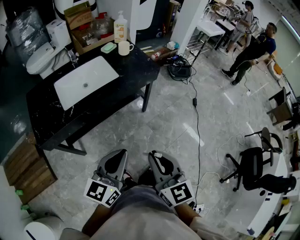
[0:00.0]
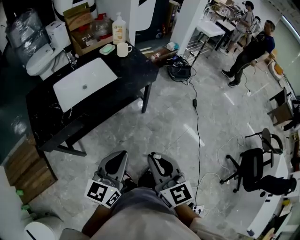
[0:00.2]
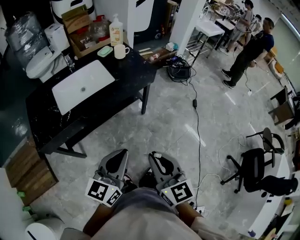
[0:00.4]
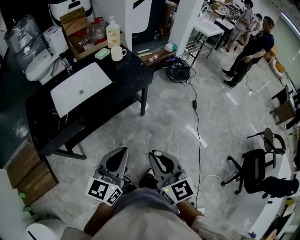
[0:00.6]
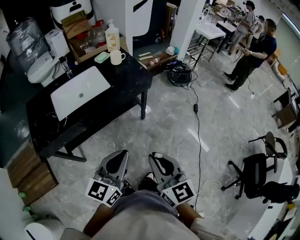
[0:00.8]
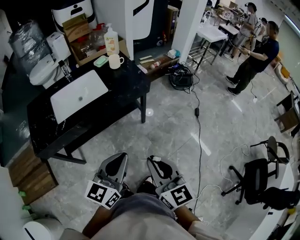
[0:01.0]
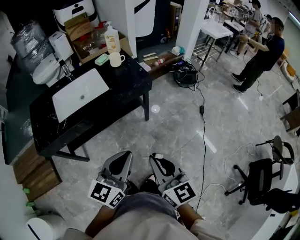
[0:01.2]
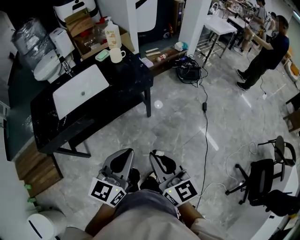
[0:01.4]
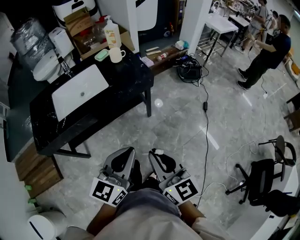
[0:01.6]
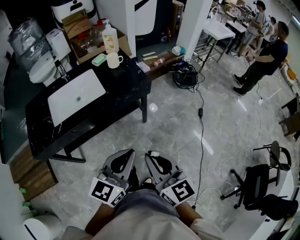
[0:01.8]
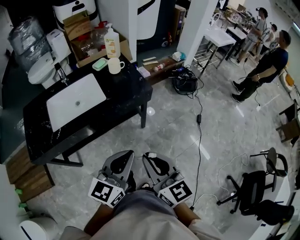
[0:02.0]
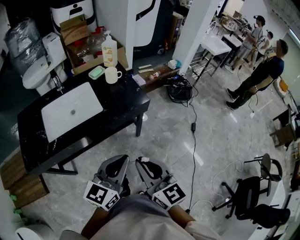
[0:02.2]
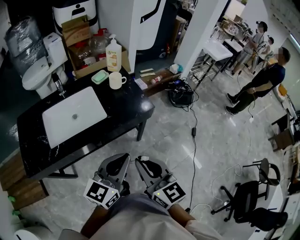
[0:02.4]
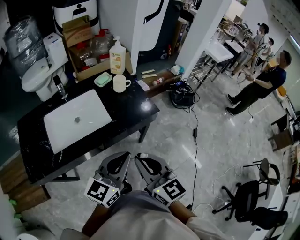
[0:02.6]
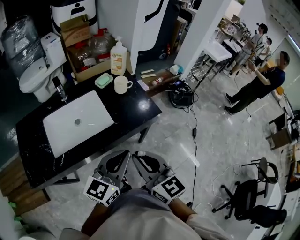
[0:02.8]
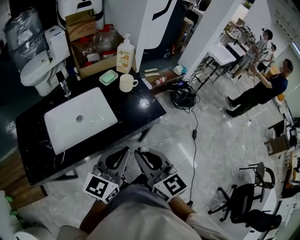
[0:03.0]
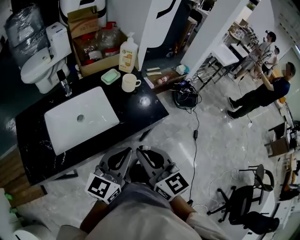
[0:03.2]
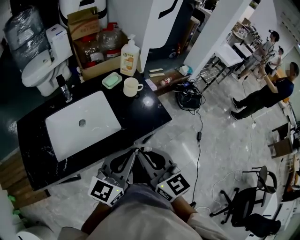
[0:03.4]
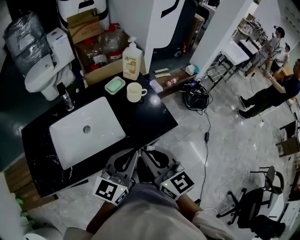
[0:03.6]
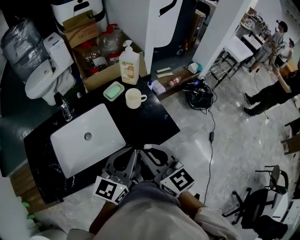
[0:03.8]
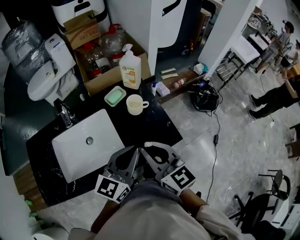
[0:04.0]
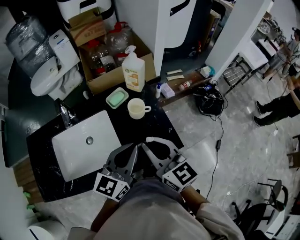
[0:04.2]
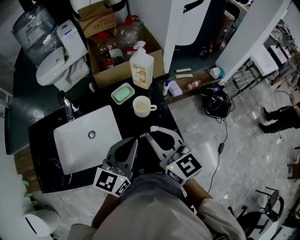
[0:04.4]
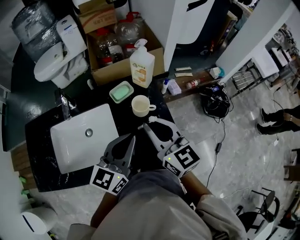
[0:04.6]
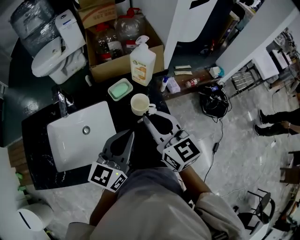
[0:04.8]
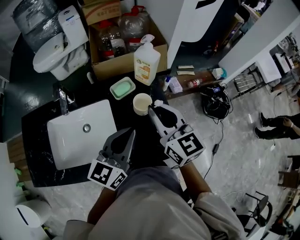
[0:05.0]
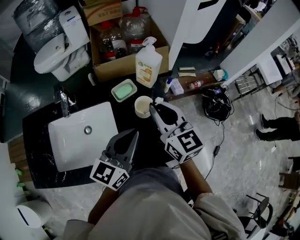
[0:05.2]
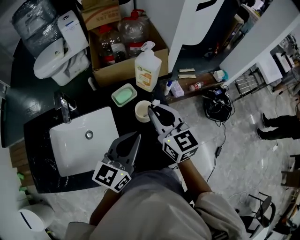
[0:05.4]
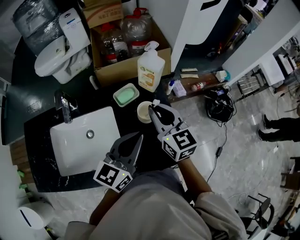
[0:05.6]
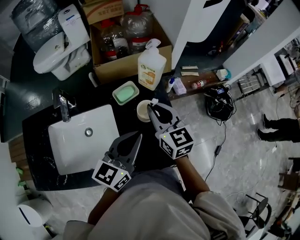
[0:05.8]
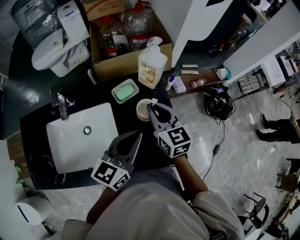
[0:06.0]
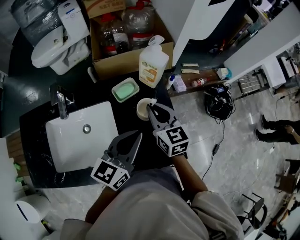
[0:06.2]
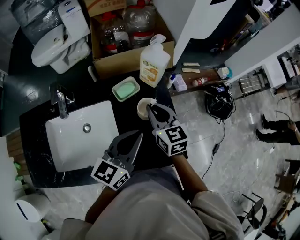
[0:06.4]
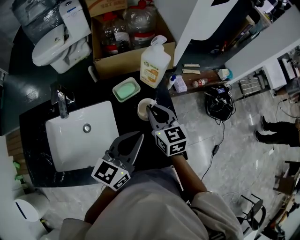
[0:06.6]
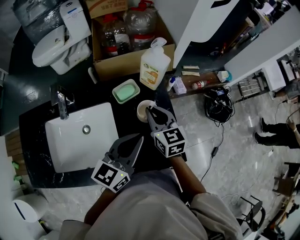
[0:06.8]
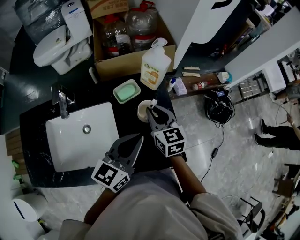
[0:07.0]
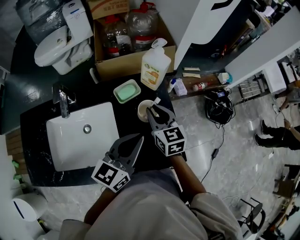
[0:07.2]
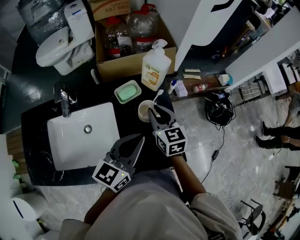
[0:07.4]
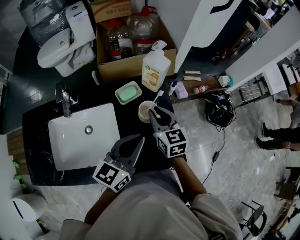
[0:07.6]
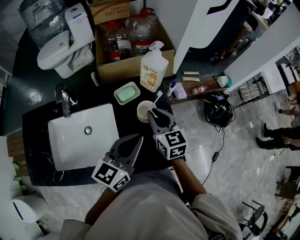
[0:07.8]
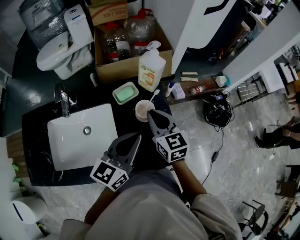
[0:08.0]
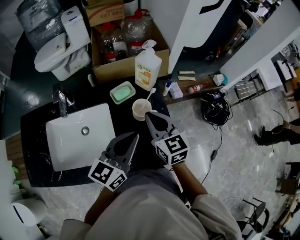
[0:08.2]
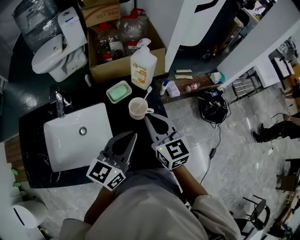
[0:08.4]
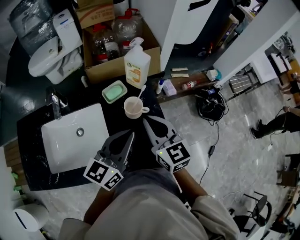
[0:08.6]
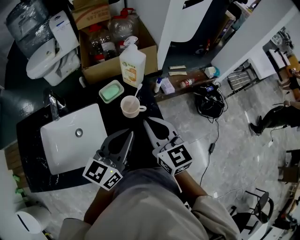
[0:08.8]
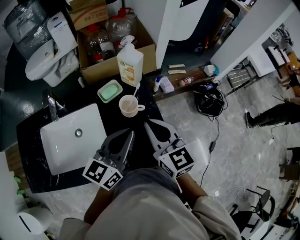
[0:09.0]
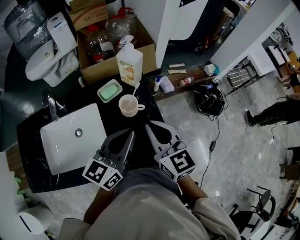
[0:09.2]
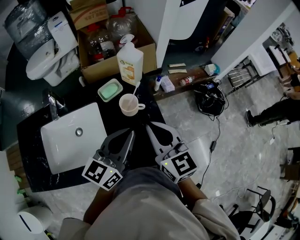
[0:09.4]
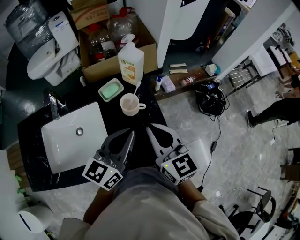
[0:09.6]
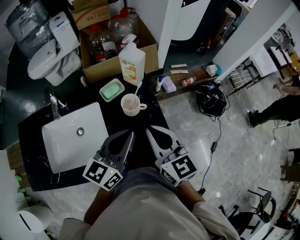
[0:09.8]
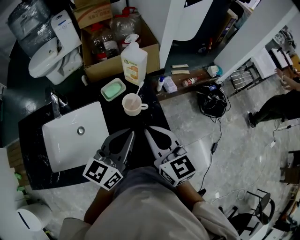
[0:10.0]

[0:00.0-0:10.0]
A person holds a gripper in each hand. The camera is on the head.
0:00.0 to 0:01.4: The two grippers go roughly 15 cm to the right and forward.
0:01.4 to 0:02.8: Both grippers travel together forward and to the left, some 25 cm.
0:02.8 to 0:04.2: The two grippers go about 25 cm forward.
0:04.2 to 0:05.8: The left gripper goes roughly 10 cm forward. Meanwhile the right gripper is displaced forward by roughly 20 cm.
0:05.8 to 0:07.2: The right gripper goes about 5 cm downward.
0:07.2 to 0:08.6: The right gripper goes approximately 10 cm backward and upward.
0:08.6 to 0:10.0: The right gripper shifts by approximately 5 cm.

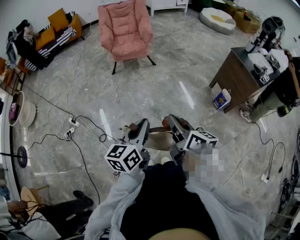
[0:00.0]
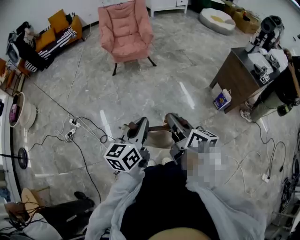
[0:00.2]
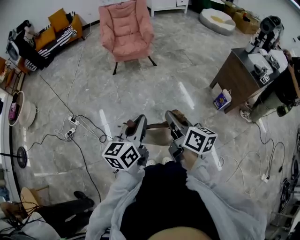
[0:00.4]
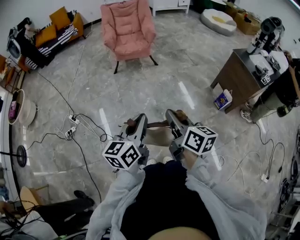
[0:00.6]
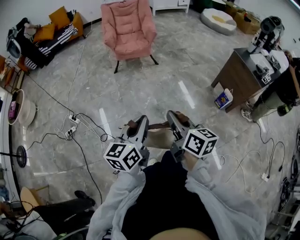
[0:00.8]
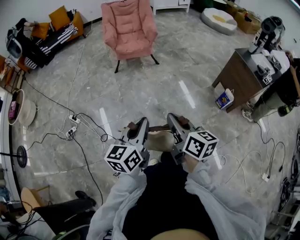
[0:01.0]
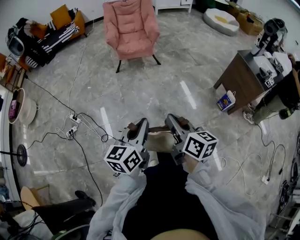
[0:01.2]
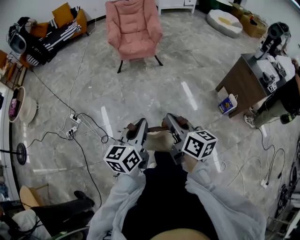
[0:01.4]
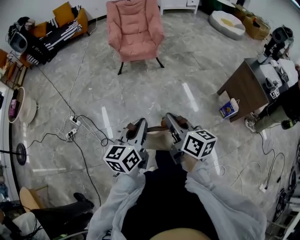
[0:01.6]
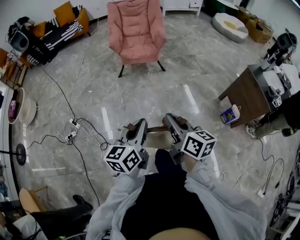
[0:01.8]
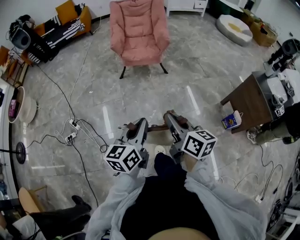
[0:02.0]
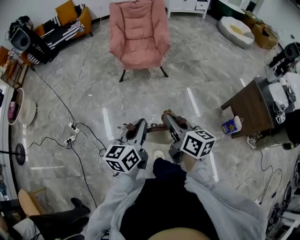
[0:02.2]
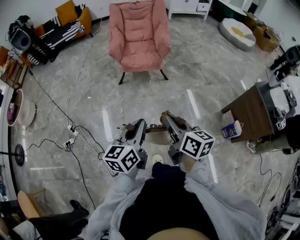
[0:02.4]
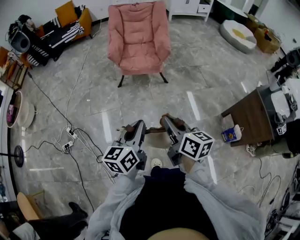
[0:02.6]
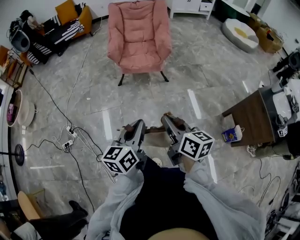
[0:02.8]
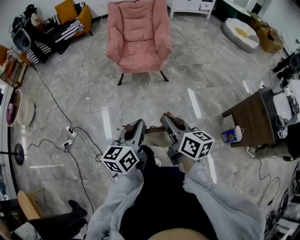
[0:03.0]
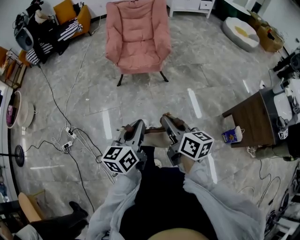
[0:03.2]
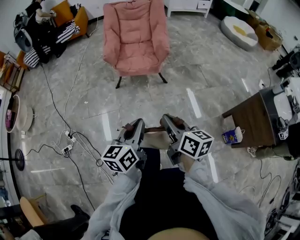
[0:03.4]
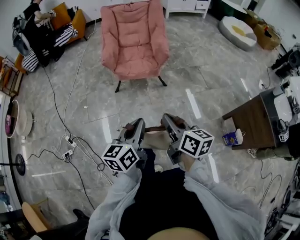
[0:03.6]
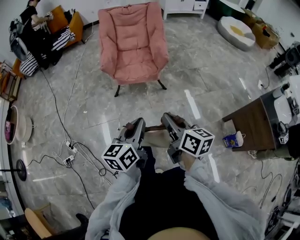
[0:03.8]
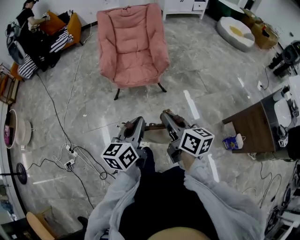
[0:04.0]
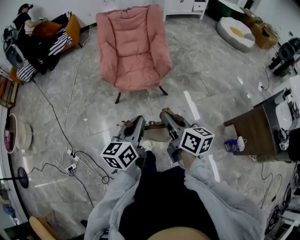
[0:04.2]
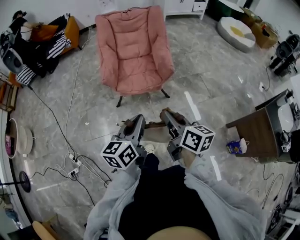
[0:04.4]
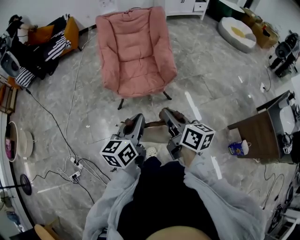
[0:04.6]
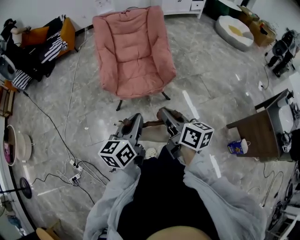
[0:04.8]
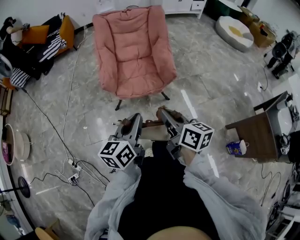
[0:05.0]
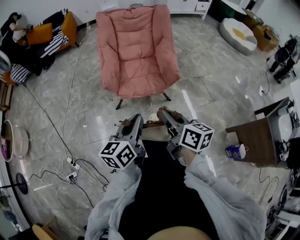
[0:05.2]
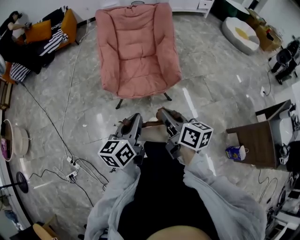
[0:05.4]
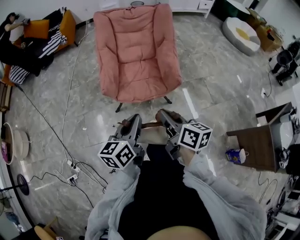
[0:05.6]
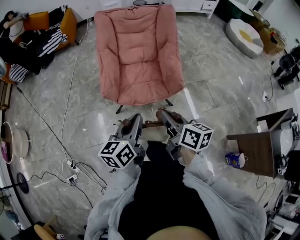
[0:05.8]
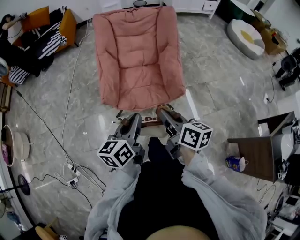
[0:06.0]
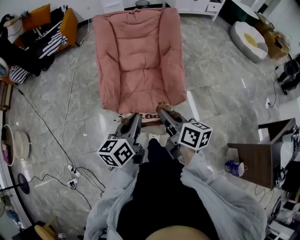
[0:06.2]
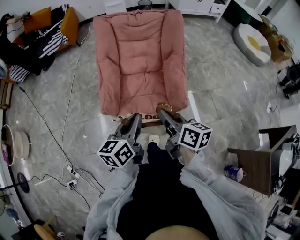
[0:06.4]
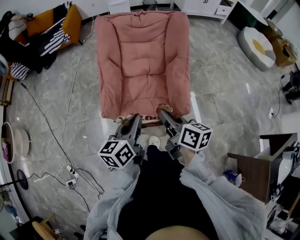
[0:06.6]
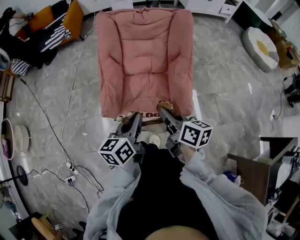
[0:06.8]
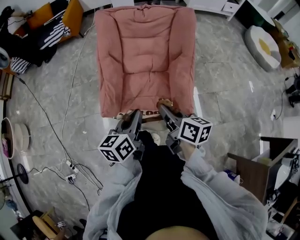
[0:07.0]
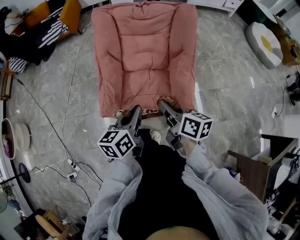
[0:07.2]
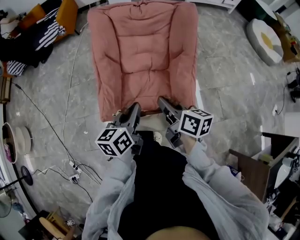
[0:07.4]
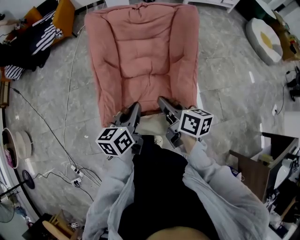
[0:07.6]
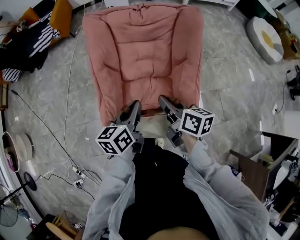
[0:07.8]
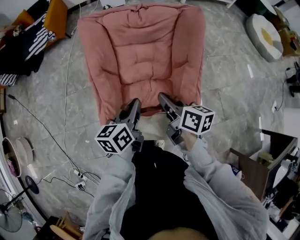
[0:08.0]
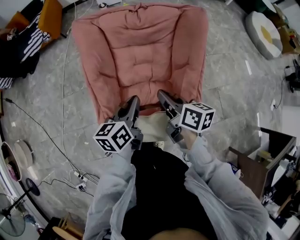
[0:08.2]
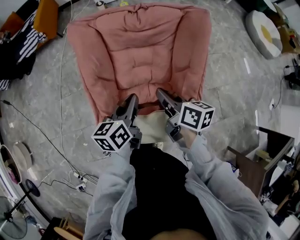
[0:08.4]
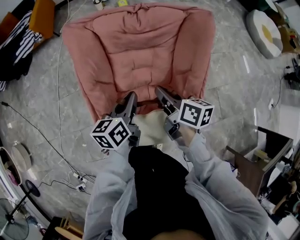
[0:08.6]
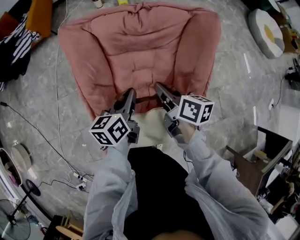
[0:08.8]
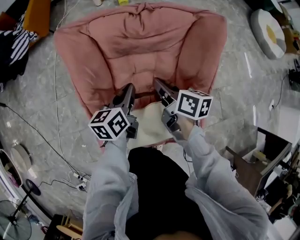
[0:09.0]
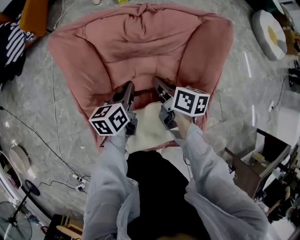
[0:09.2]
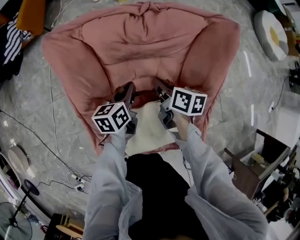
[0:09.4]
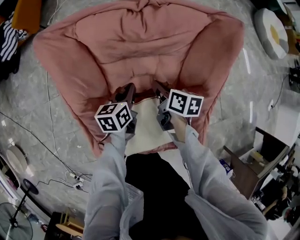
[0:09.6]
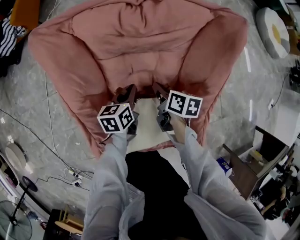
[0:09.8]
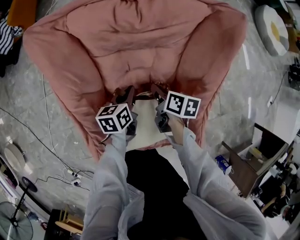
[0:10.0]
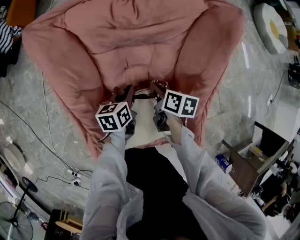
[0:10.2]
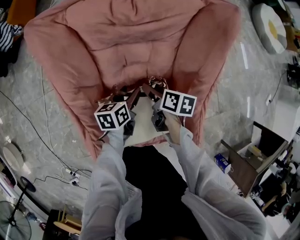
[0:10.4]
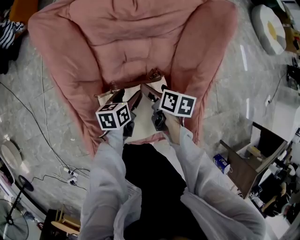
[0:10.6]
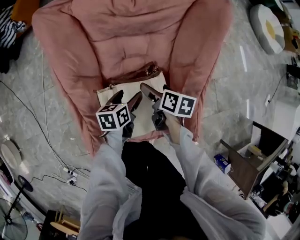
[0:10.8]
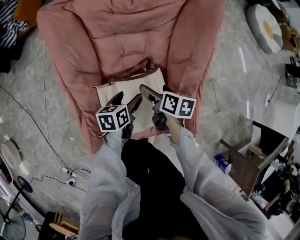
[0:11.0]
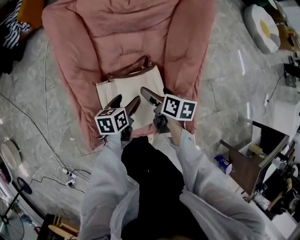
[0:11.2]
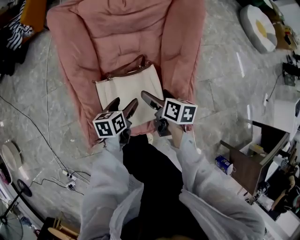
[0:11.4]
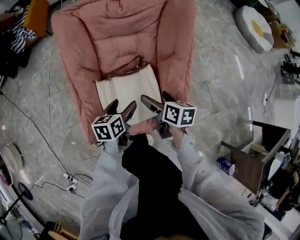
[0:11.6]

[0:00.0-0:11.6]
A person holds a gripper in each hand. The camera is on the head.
0:00.0 to 0:01.4: Both grippers move to the left, roughly 5 cm.
0:01.4 to 0:02.8: The two grippers go some 30 cm forward.
0:02.8 to 0:04.4: Both grippers travel together forward, some 25 cm.
0:04.4 to 0:05.8: Both grippers travel together forward, about 20 cm.
0:05.8 to 0:07.2: The grippers both shift forward by approximately 25 cm.
0:07.2 to 0:08.8: Both grippers move forward, approximately 30 cm.
0:08.8 to 0:10.2: Both grippers travel together downward, some 20 cm. The right gripper turns by some 20 degrees.
0:10.2 to 0:11.6: The two grippers go about 20 cm backward and upward. The right gripper opens; the left gripper opens its fingers.

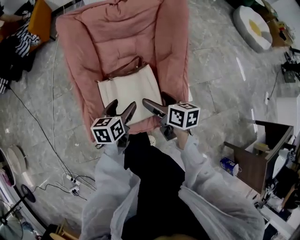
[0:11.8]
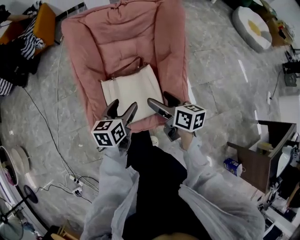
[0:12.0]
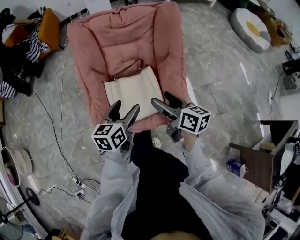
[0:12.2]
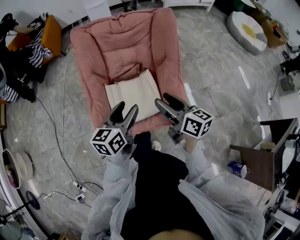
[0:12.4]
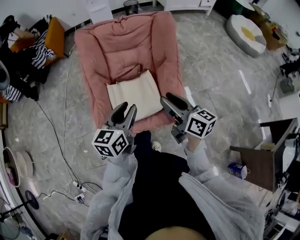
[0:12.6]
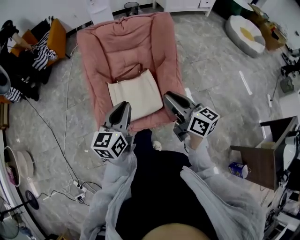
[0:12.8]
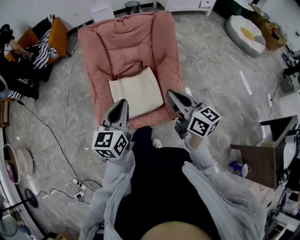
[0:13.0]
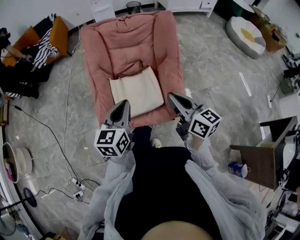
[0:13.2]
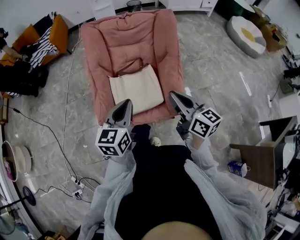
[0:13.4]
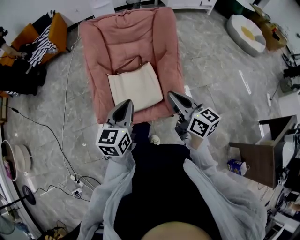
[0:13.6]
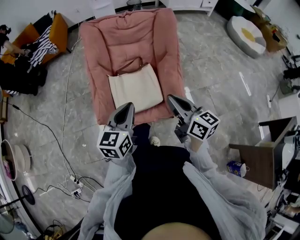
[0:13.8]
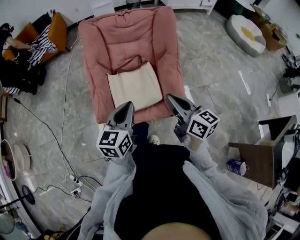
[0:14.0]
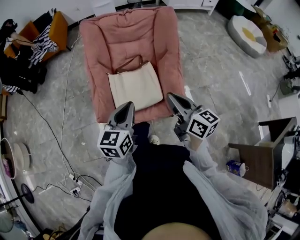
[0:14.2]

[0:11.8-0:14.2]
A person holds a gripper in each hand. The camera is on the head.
0:11.8 to 0:13.0: The grippers both shift upward and backward by about 25 cm. The right gripper changes its angle by roughly 30 degrees, and closes up, while the left gripper rotates about 30 degrees, and closes up.
0:13.0 to 0:14.2: The grippers move only a little.
